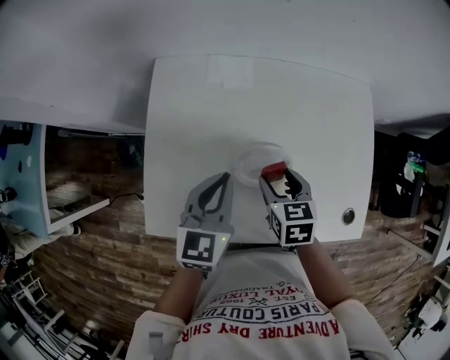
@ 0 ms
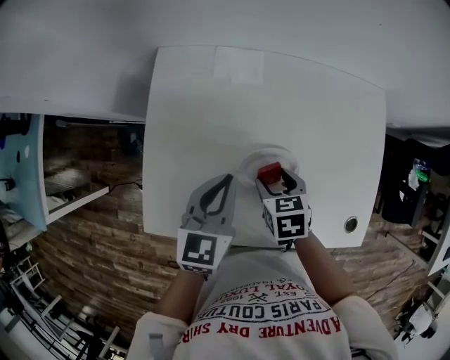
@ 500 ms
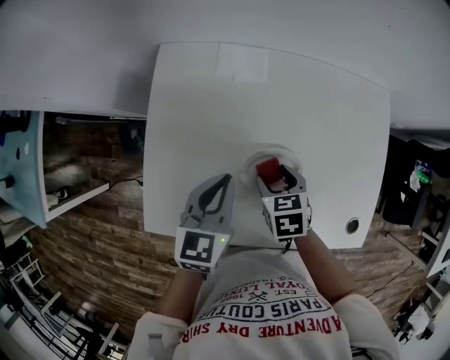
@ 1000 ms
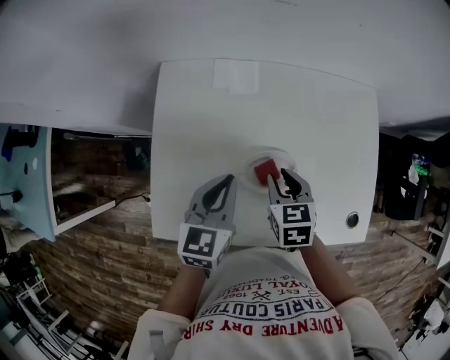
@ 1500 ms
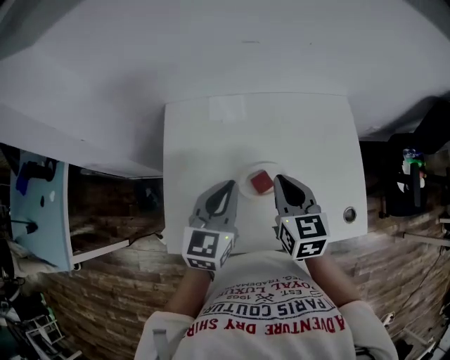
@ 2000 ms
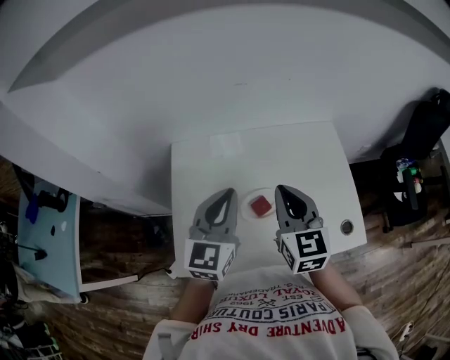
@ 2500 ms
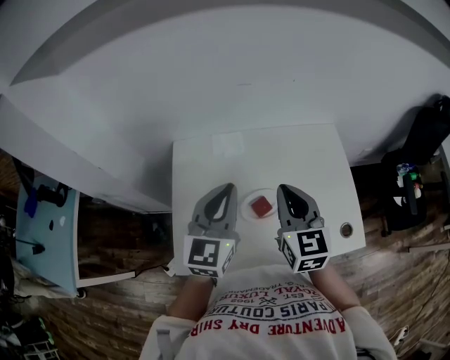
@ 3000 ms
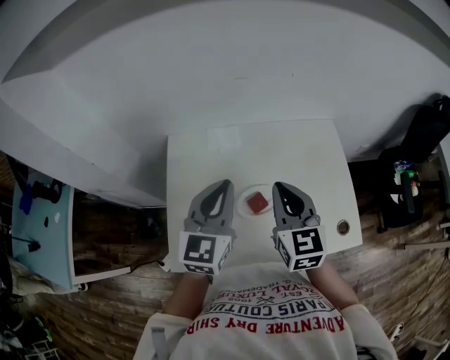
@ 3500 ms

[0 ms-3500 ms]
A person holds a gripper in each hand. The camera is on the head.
0 ms to 2000 ms: The left gripper travels upward by about 5 cm; the right gripper goes approximately 15 cm upward, changes its angle by some 20 degrees, and closes up.
2000 ms to 3500 ms: The two grippers go about 10 cm upward.

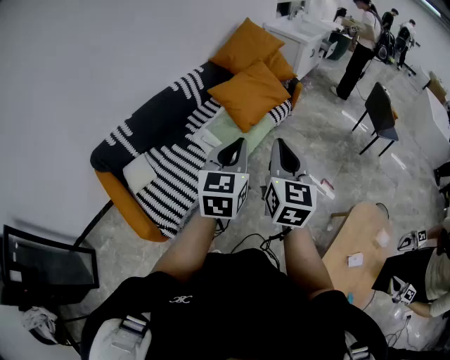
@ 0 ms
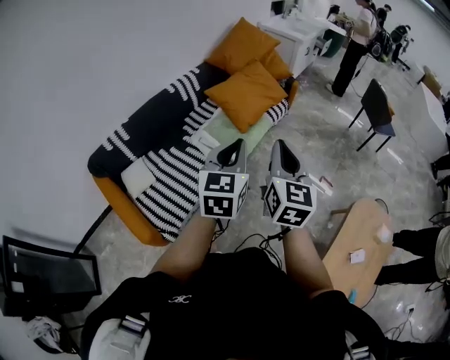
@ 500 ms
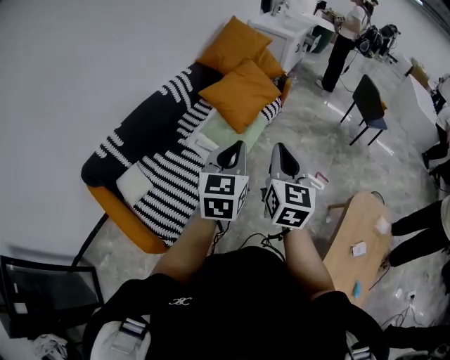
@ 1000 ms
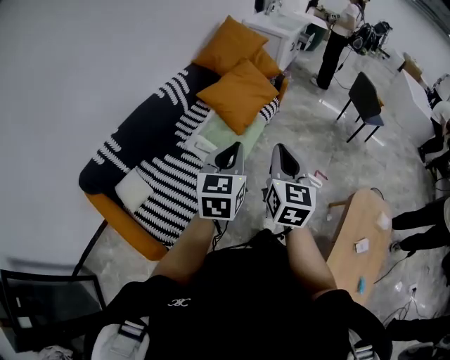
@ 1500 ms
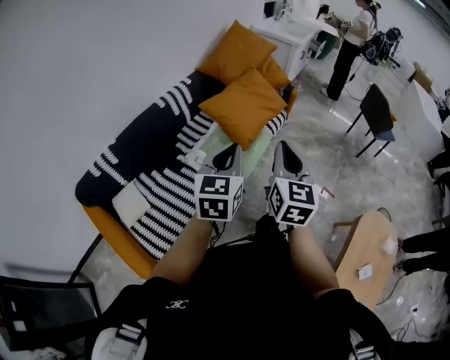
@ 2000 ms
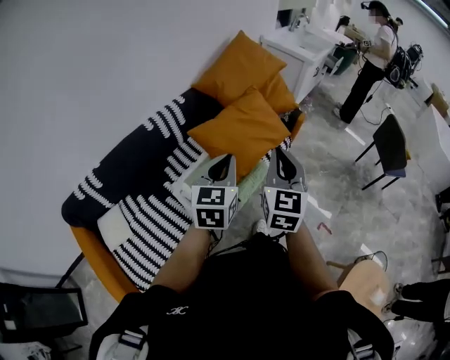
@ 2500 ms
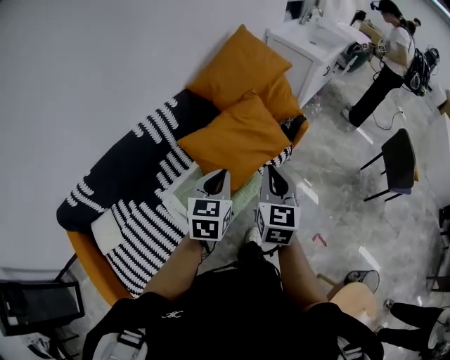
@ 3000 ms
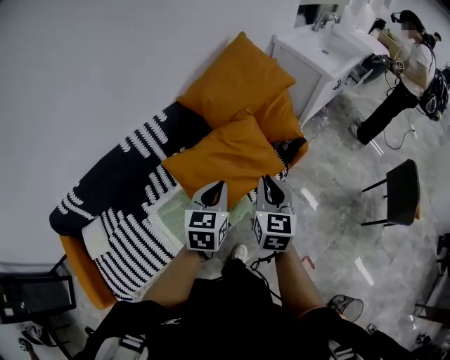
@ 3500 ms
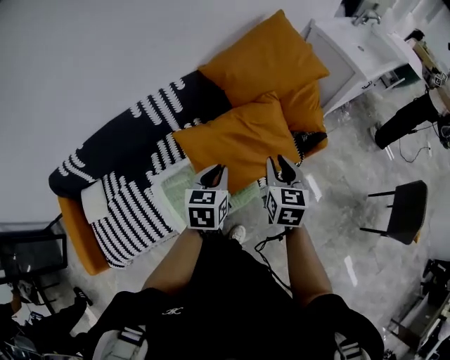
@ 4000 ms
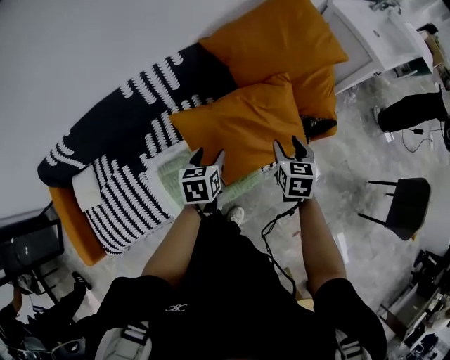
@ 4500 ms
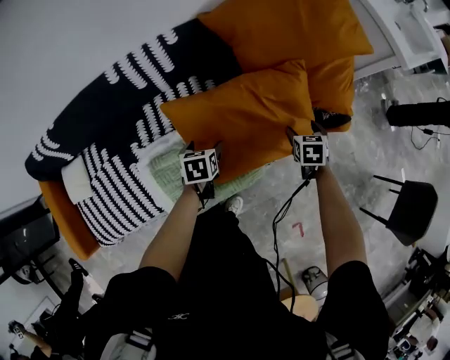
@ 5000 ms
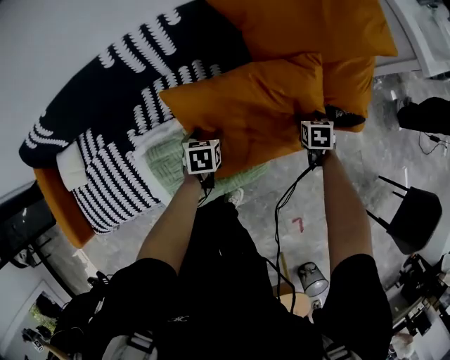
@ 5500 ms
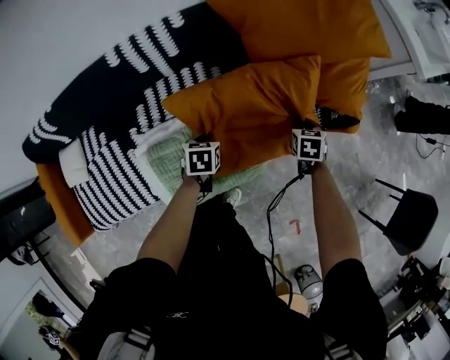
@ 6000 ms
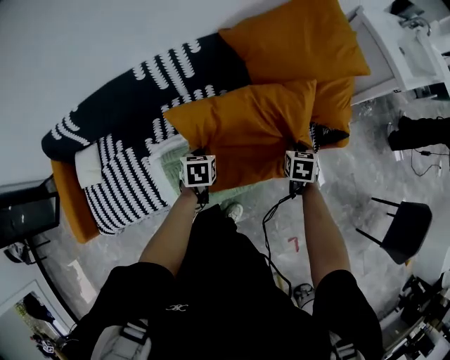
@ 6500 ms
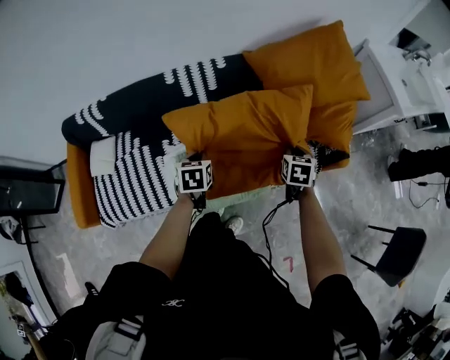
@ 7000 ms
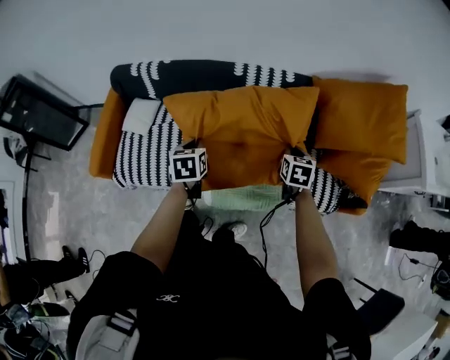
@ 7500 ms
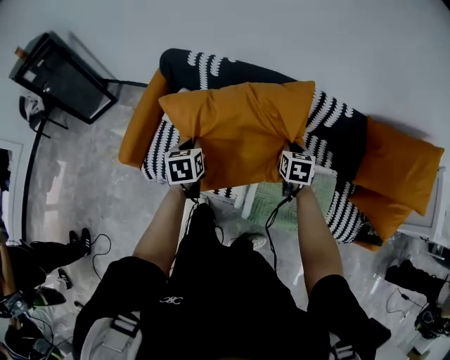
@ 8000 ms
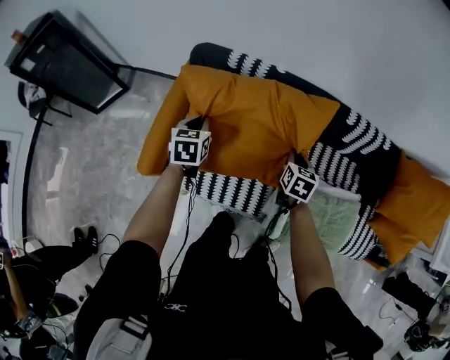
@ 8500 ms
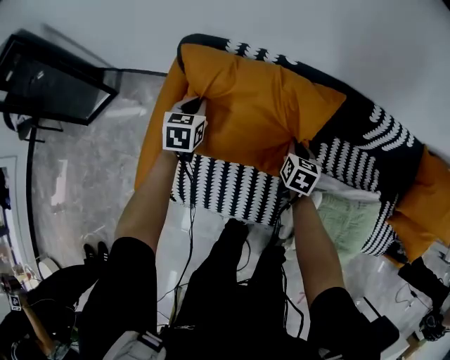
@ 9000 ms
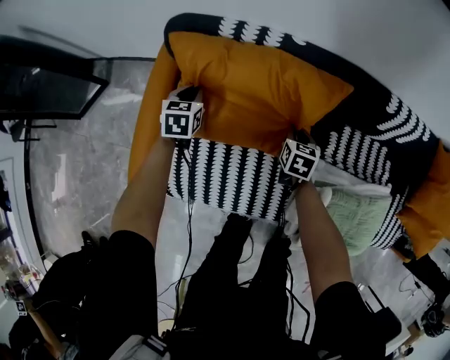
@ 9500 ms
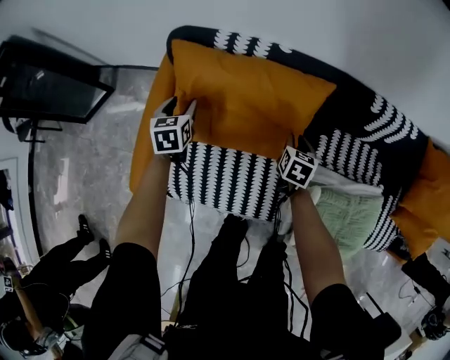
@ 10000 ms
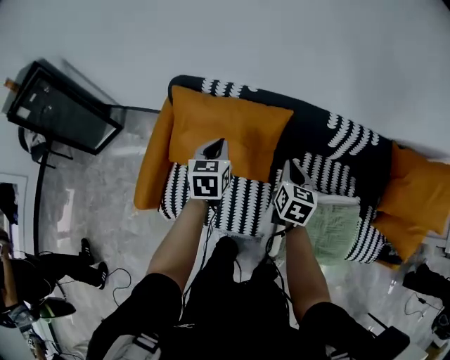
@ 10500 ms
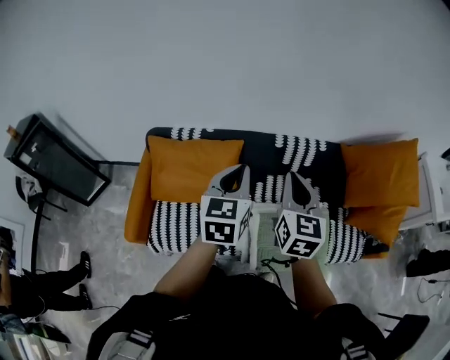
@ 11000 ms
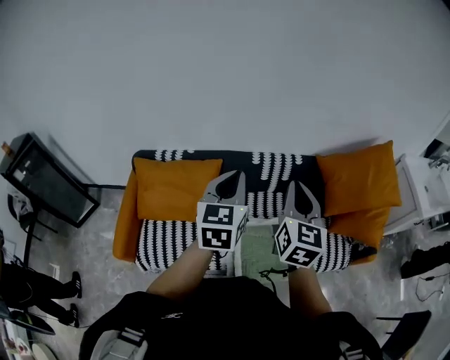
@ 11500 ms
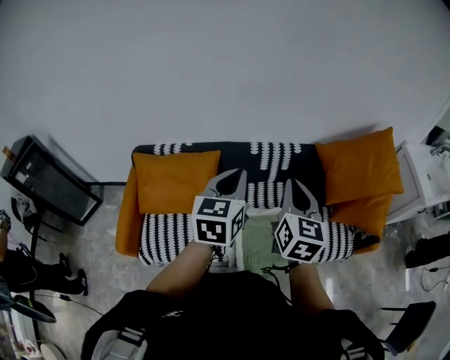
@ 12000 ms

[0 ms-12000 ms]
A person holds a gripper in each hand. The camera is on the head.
0 ms to 2000 ms: The left gripper heads forward, to the left and downward, covering approximately 20 cm; the right gripper shifts approximately 15 cm forward and to the left.
2000 ms to 4000 ms: The two grippers travel together, forward, roughly 50 cm. The right gripper turns by roughly 40 degrees, while the left gripper changes its angle by approximately 40 degrees.
4000 ms to 6000 ms: The left gripper goes about 30 cm downward, changes its angle by about 30 degrees, and opens and closes again. The right gripper goes some 35 cm downward and forward, angles its fingers downward, by some 30 degrees, and opens, then closes once more.
6000 ms to 8000 ms: The two grippers travel together, some 60 cm. The right gripper turns by about 40 degrees, while the left gripper turns by roughly 50 degrees.
8000 ms to 10000 ms: The left gripper shifts approximately 40 cm forward, to the left and downward, and opens up; the right gripper goes approximately 35 cm downward, to the left and forward.
10000 ms to 12000 ms: The right gripper moves upward, to the right and backward, roughly 70 cm, and tilts its fingers approximately 40 degrees upward. The left gripper shifts roughly 70 cm to the right and upward, swivels roughly 40 degrees, and closes its fingers.

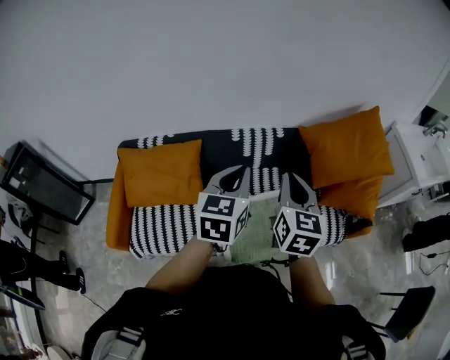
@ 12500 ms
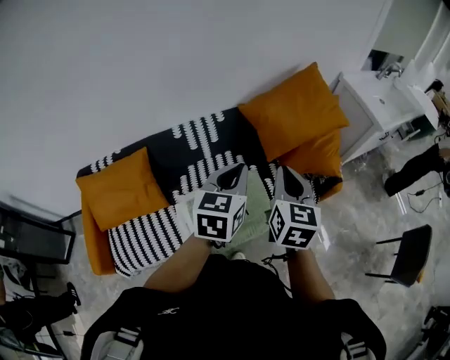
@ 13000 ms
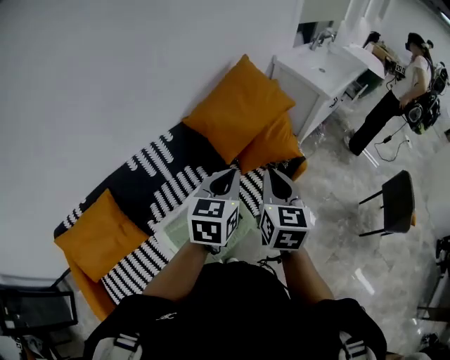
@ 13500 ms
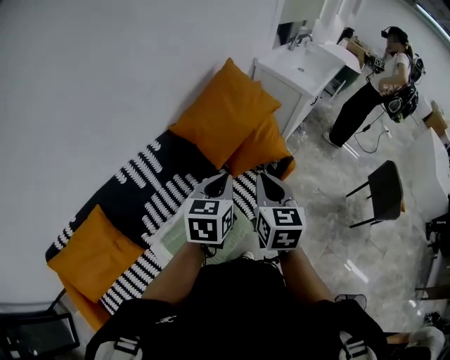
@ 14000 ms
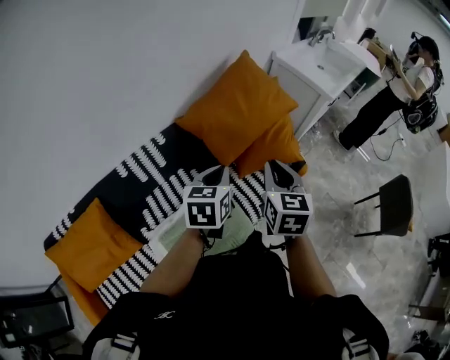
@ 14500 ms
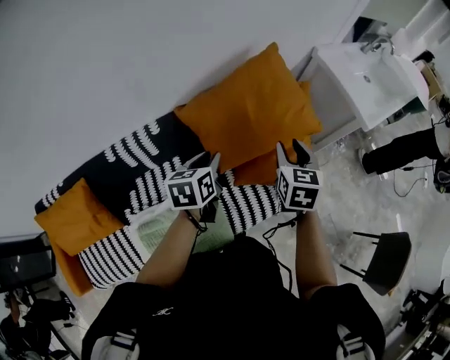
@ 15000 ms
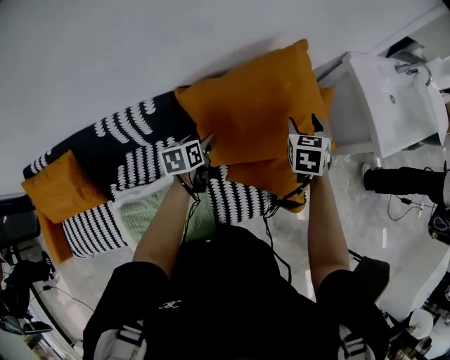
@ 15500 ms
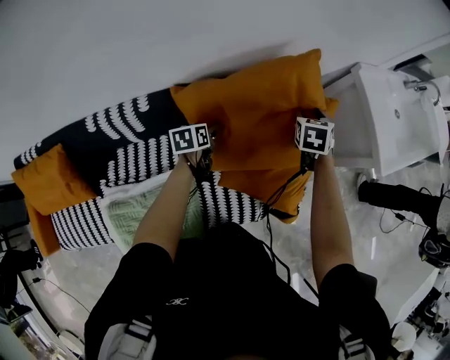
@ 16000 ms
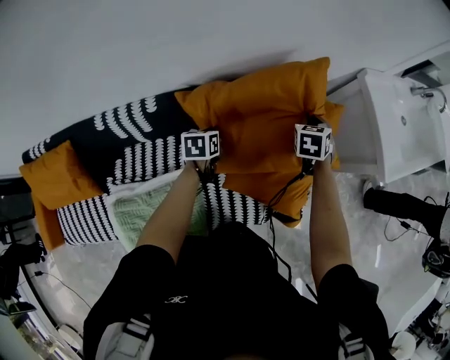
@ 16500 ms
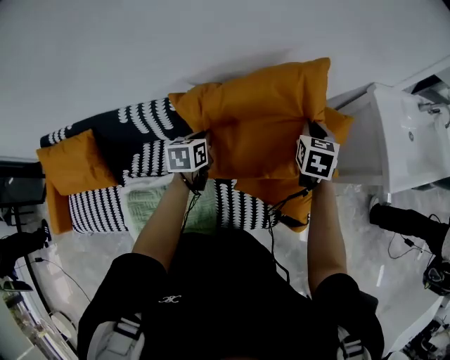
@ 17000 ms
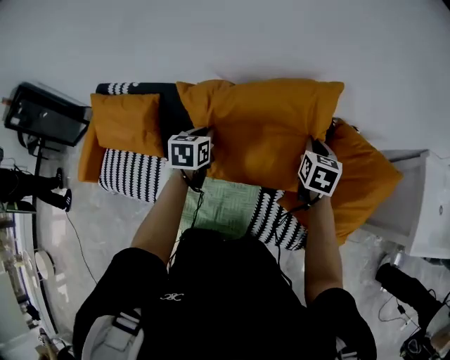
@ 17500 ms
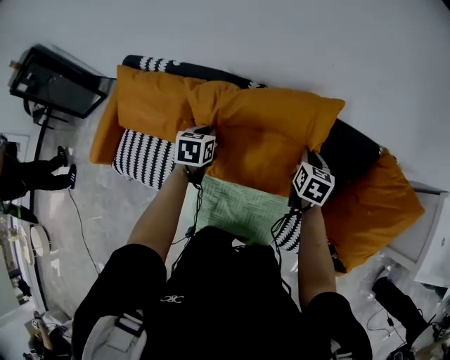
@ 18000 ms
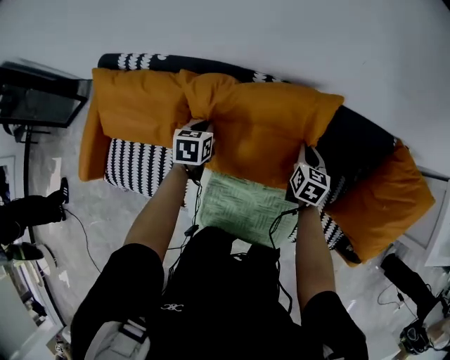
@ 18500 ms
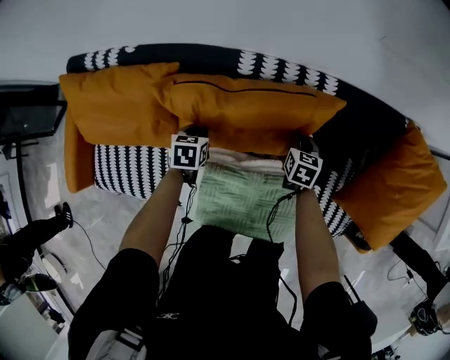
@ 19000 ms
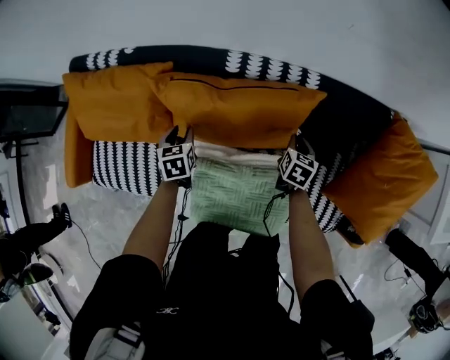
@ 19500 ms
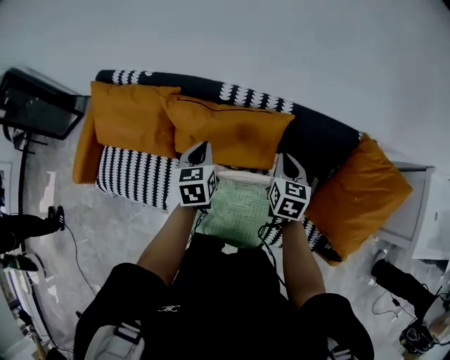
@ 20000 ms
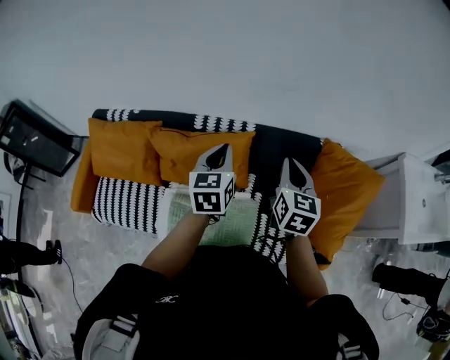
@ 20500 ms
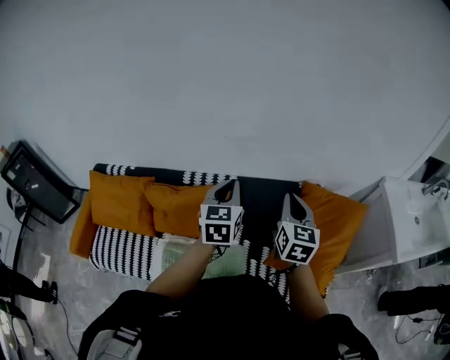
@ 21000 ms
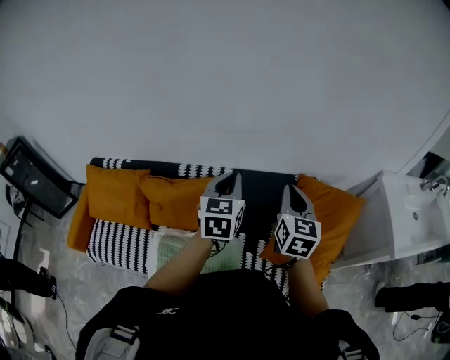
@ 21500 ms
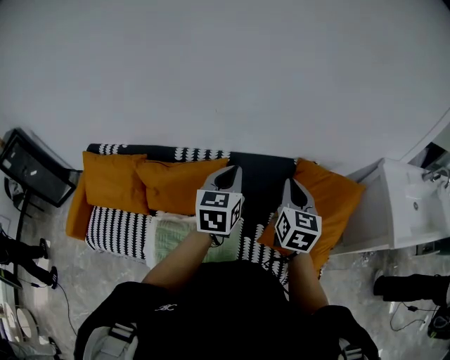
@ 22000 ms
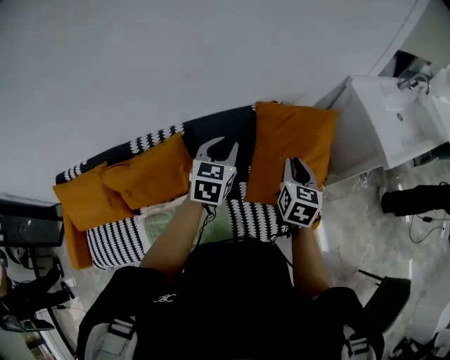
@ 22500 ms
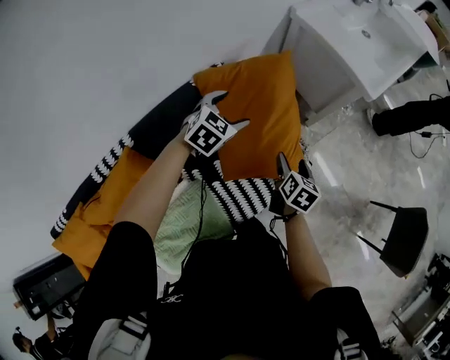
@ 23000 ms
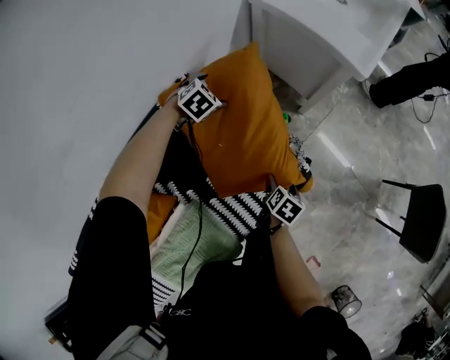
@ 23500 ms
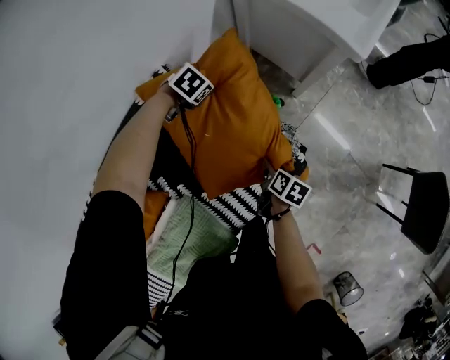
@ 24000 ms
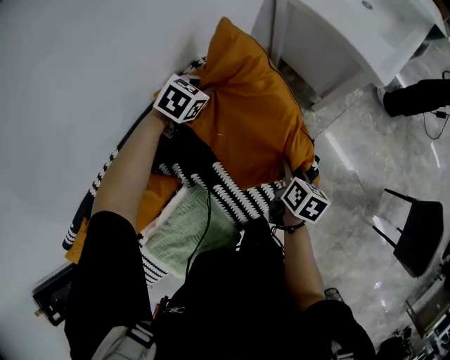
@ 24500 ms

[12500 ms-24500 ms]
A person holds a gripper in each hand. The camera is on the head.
12500 ms to 14500 ms: The left gripper changes place by about 30 cm, and turns by some 30 degrees. The right gripper ends up some 30 cm from where it was, and swivels some 30 degrees.
14500 ms to 16500 ms: The two grippers go some 50 cm forward and downward. The right gripper swivels some 40 degrees, and opens, then closes again; the left gripper rotates roughly 40 degrees, and opens and closes again.
16500 ms to 18500 ms: Both grippers are carried approximately 60 cm. The right gripper swivels approximately 30 degrees; the left gripper swivels some 20 degrees.
18500 ms to 20500 ms: The two grippers go roughly 40 cm upward and to the right. The left gripper rotates about 30 degrees, and opens, then closes once more. The right gripper changes its angle by roughly 20 degrees.
20500 ms to 22500 ms: The right gripper shifts by some 30 cm, and turns by roughly 30 degrees, while the left gripper moves some 10 cm upward and comes back, and turns by roughly 40 degrees.
22500 ms to 24500 ms: The right gripper shifts some 25 cm downward, rolls clockwise, seen from behind, by roughly 40 degrees, and opens, then closes once more; the left gripper shifts by about 35 cm, rotates approximately 50 degrees, and opens, then closes once more.
